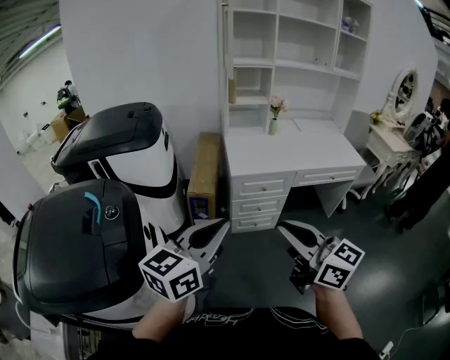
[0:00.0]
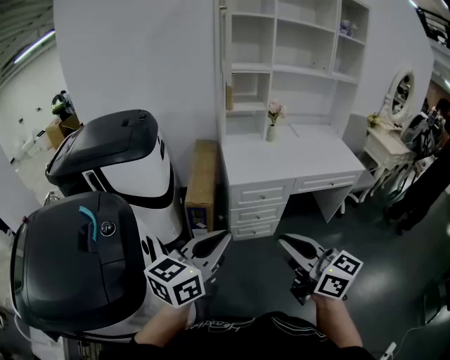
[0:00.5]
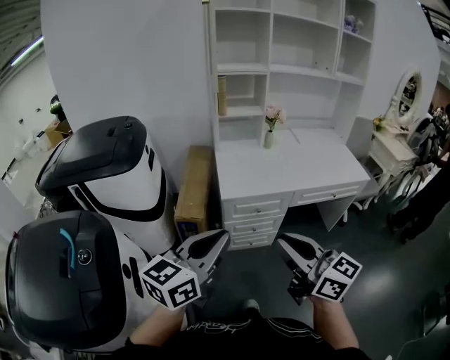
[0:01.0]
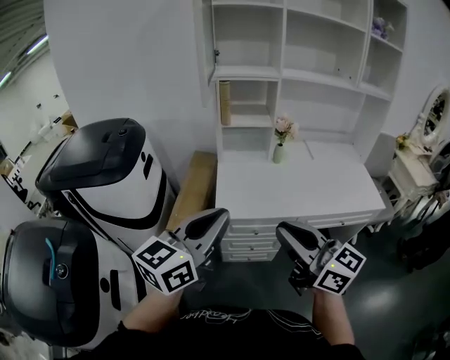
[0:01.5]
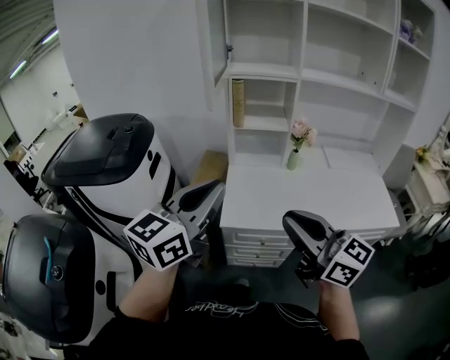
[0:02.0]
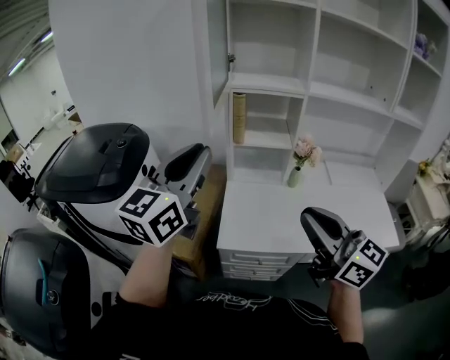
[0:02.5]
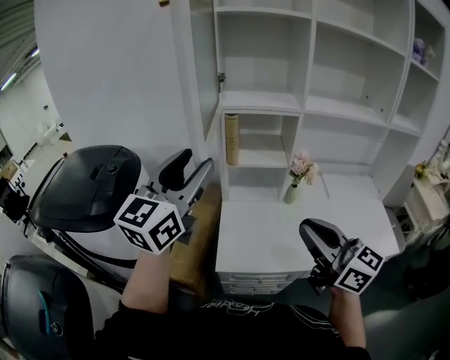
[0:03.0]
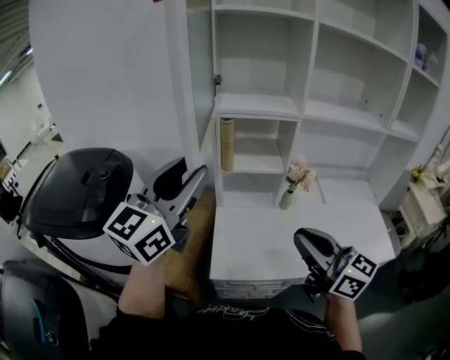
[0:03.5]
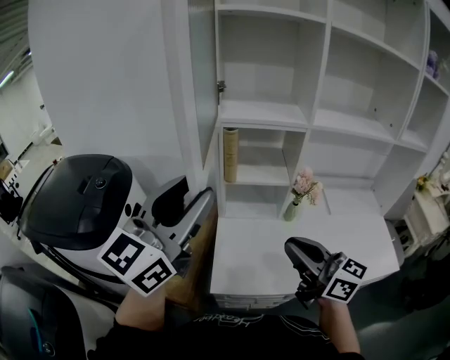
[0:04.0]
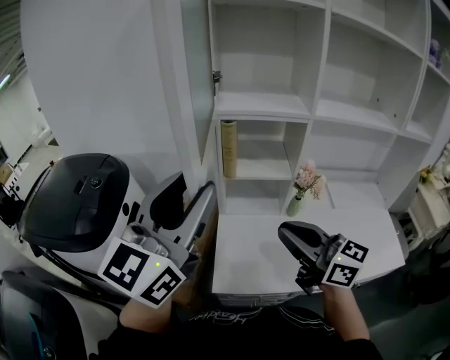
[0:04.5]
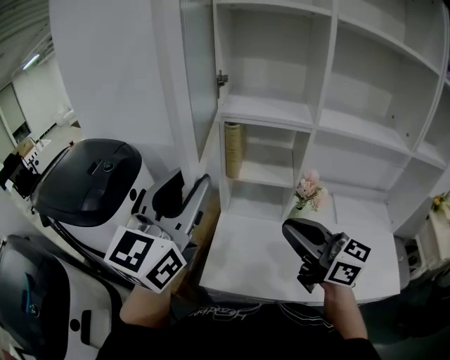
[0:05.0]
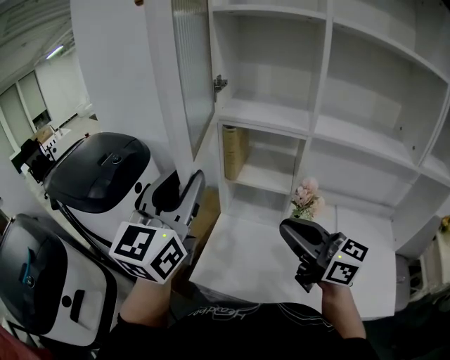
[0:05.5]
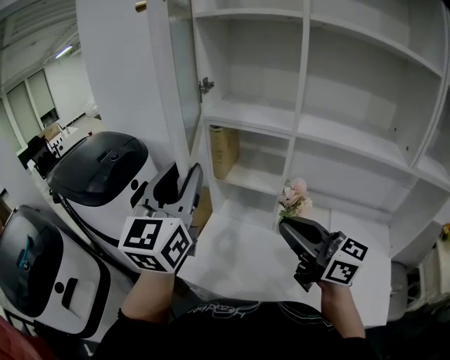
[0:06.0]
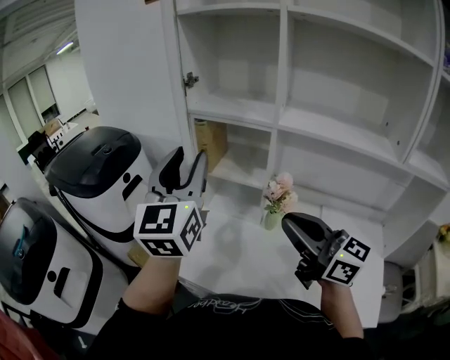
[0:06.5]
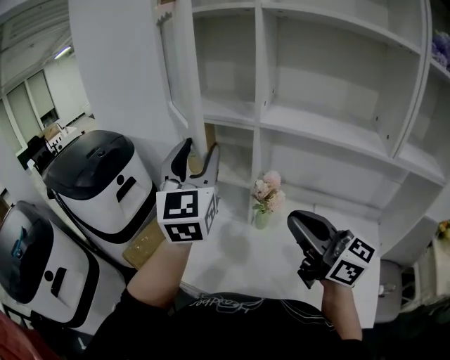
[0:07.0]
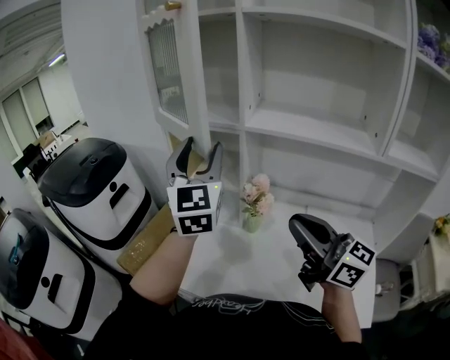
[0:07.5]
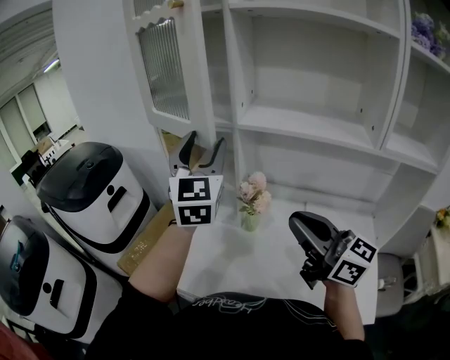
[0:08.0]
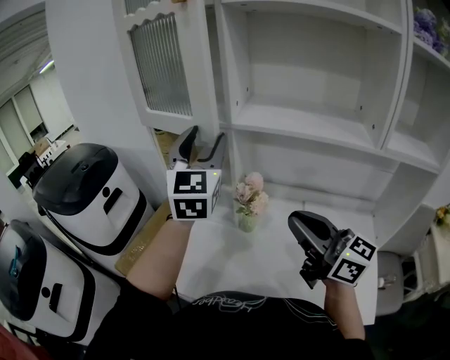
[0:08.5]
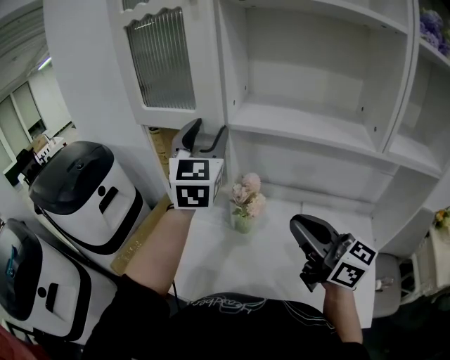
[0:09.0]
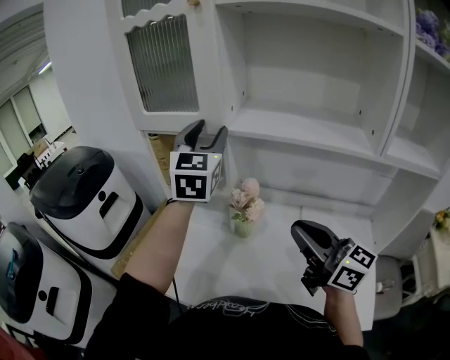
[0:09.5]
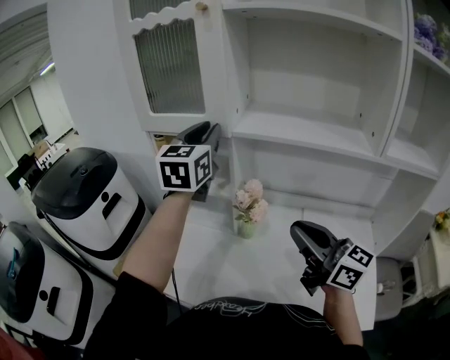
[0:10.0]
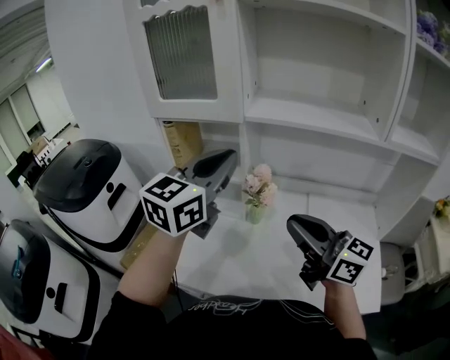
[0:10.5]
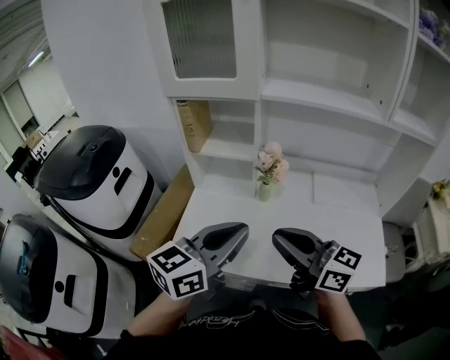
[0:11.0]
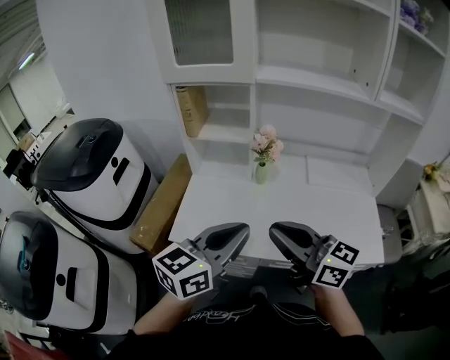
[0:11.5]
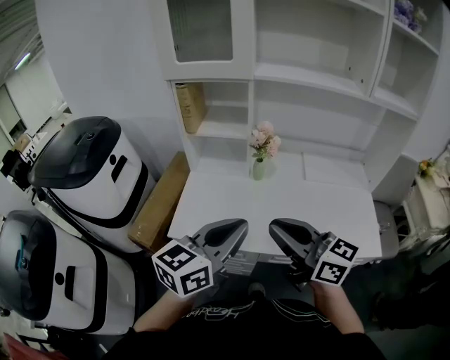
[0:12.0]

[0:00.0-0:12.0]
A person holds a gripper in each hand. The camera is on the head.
0:00.0 to 0:02.0: The pair of grippers is taken forward, approximately 40 cm.
0:02.0 to 0:04.0: The right gripper heads forward, covering roughly 25 cm; the left gripper shifts about 25 cm forward and upward, and opens up.
0:04.0 to 0:06.0: The right gripper ends up some 15 cm from where it was, and swivels about 20 degrees, while the left gripper changes place by some 10 cm, and rotates roughly 40 degrees.
0:06.0 to 0:08.0: The right gripper heads to the right and backward, covering approximately 20 cm; the left gripper heads to the right, covering roughly 20 cm, and opens its fingers.
0:08.0 to 0:10.0: The left gripper moves forward, about 5 cm, and closes its fingers.
0:10.0 to 0:12.0: The right gripper goes approximately 25 cm backward and to the left, while the left gripper is displaced backward and downward by about 40 cm, and turns by approximately 40 degrees.

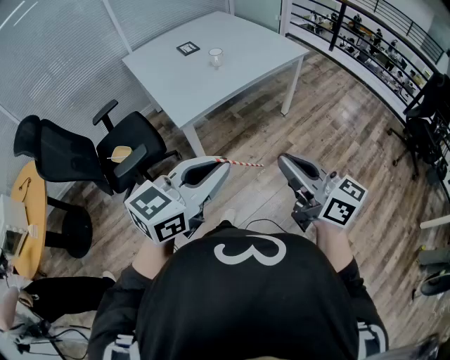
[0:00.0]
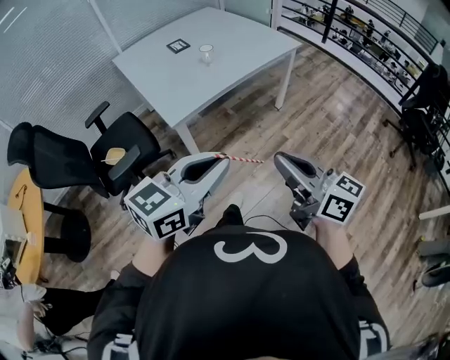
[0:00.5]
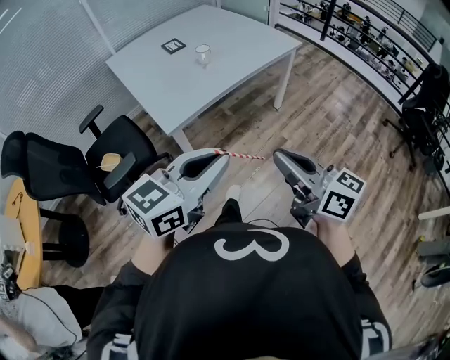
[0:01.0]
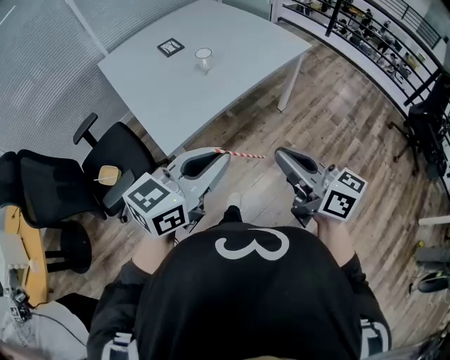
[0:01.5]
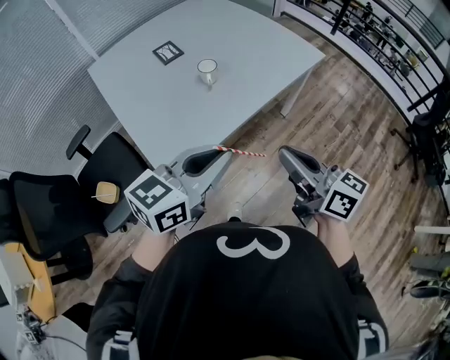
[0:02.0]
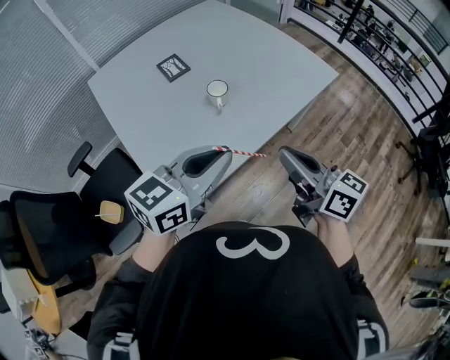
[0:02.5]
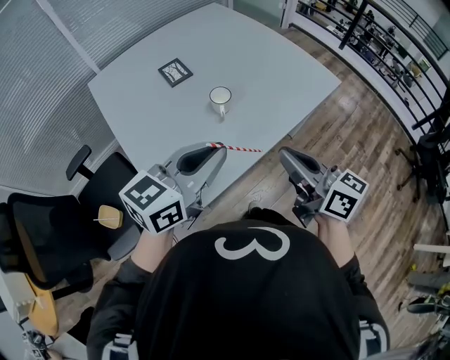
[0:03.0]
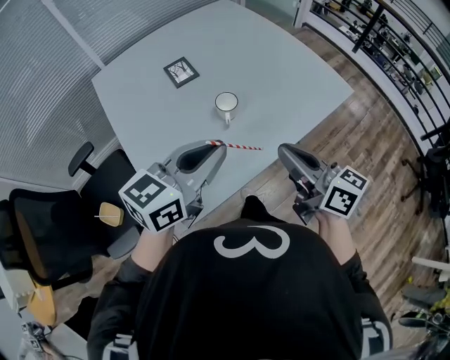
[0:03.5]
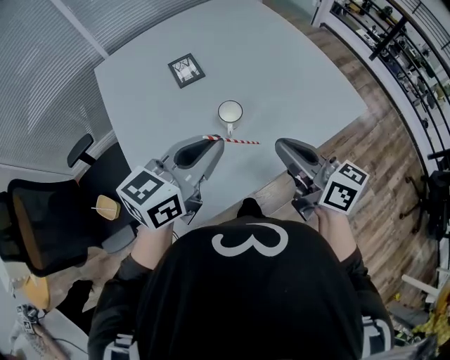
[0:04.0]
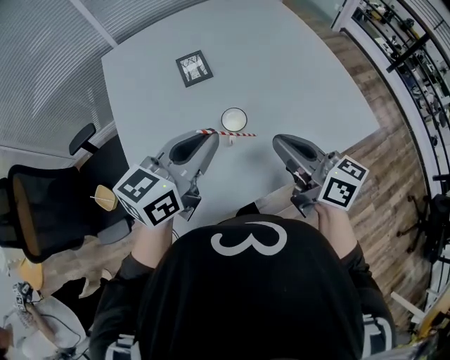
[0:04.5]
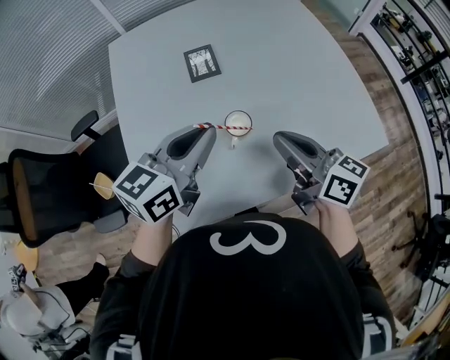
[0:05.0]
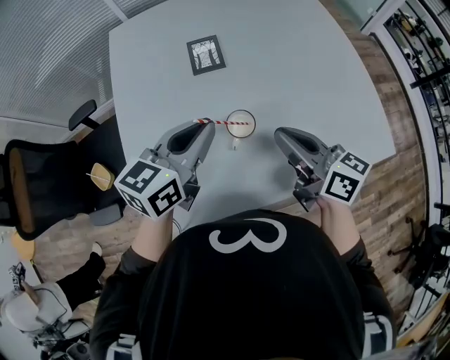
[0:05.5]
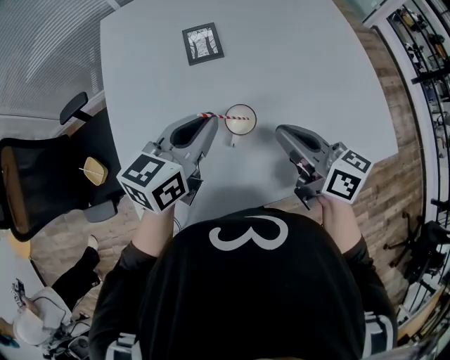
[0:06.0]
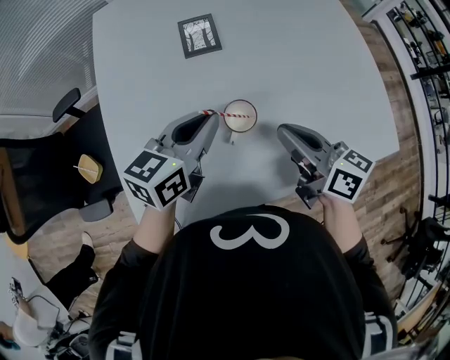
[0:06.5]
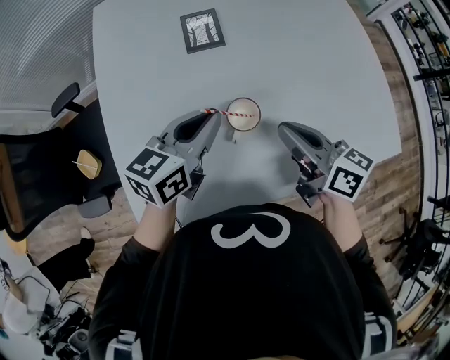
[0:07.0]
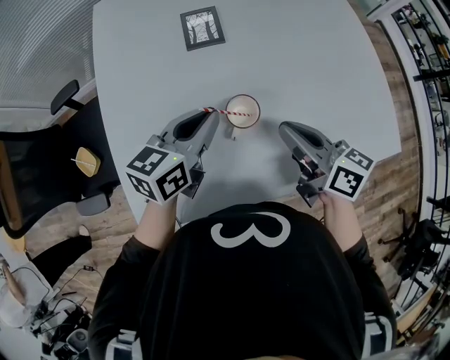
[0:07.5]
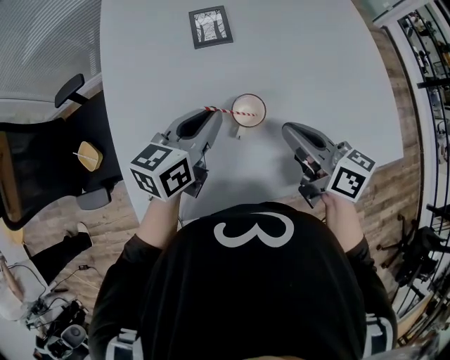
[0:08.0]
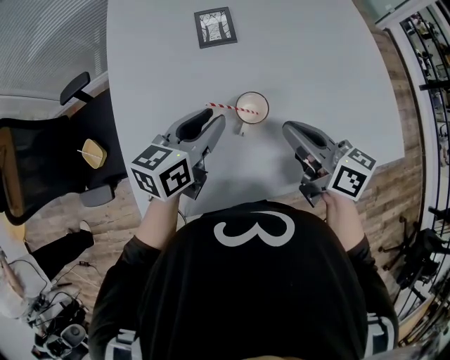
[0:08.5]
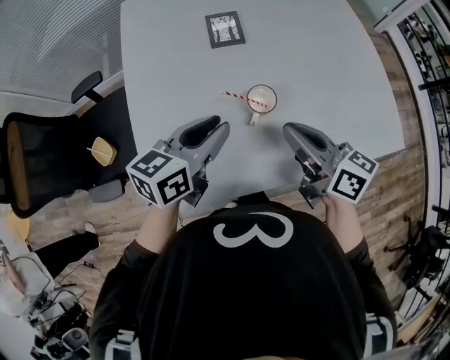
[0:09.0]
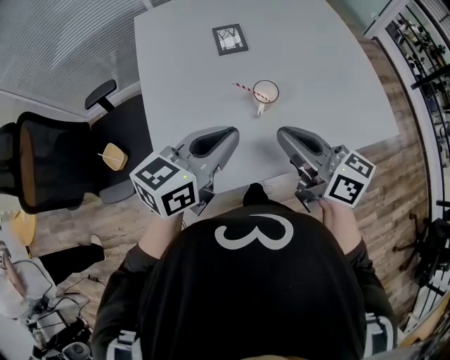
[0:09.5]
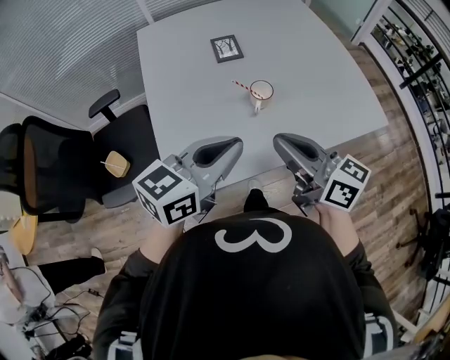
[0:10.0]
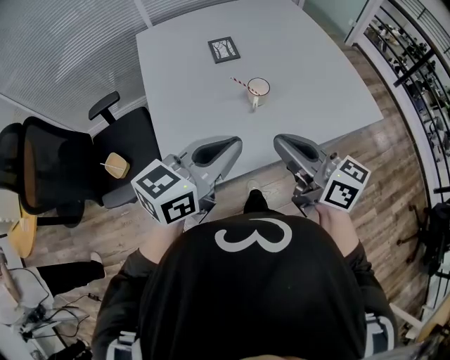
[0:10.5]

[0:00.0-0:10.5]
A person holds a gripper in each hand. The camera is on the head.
0:00.0 to 0:02.0: Both grippers move forward, some 35 cm.
0:02.0 to 0:04.0: The grippers both shift forward by roughly 30 cm.
0:04.0 to 0:06.5: Both grippers travel together forward and downward, approximately 20 cm. The left gripper swivels approximately 20 degrees.
0:06.5 to 0:08.5: The left gripper opens its fingers.
0:08.5 to 0:10.5: The right gripper shifts some 25 cm backward, upward and to the left; the left gripper moves backward and upward, about 30 cm, swivels some 30 degrees, and closes up.

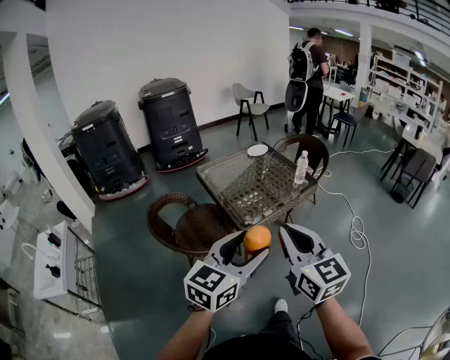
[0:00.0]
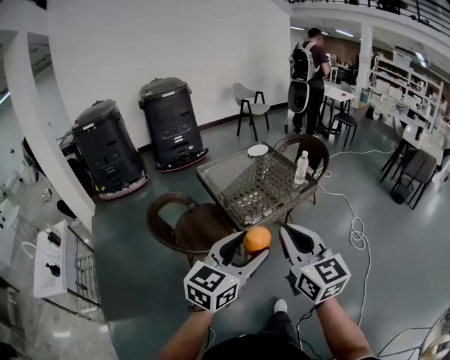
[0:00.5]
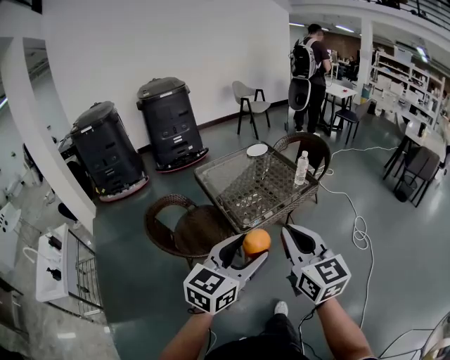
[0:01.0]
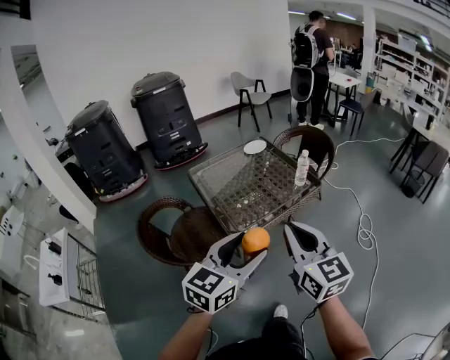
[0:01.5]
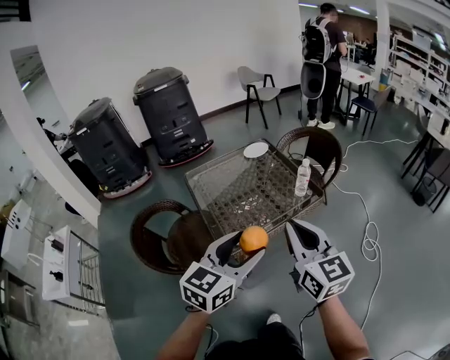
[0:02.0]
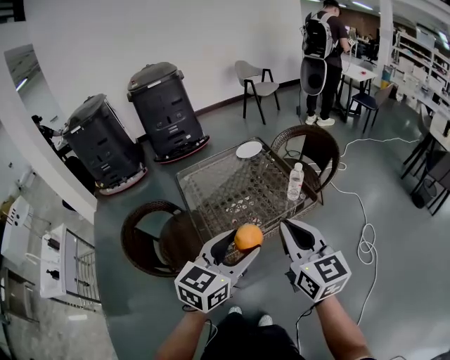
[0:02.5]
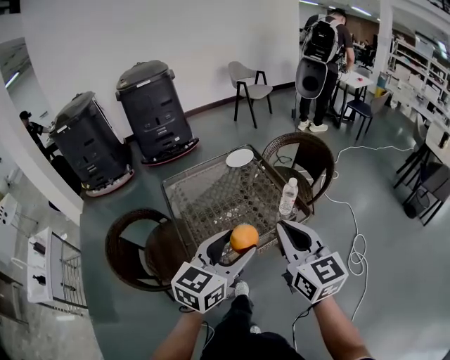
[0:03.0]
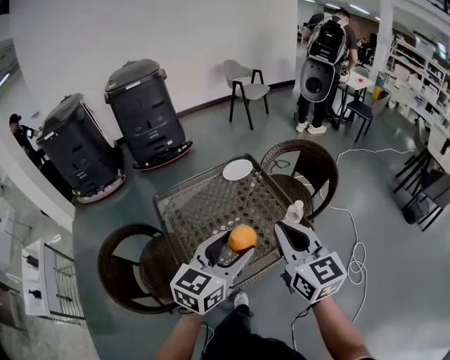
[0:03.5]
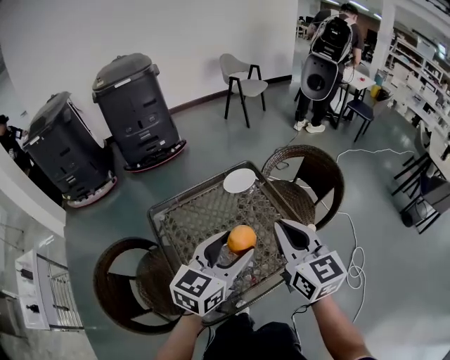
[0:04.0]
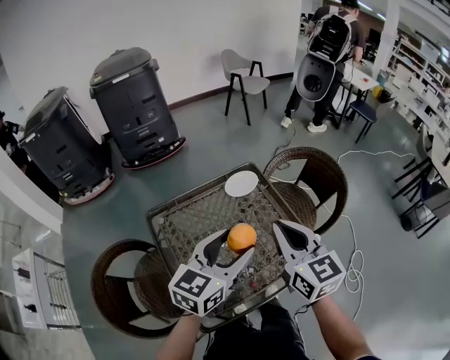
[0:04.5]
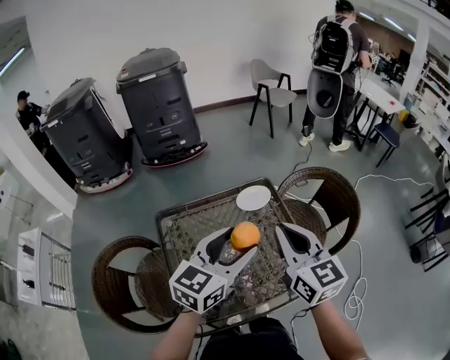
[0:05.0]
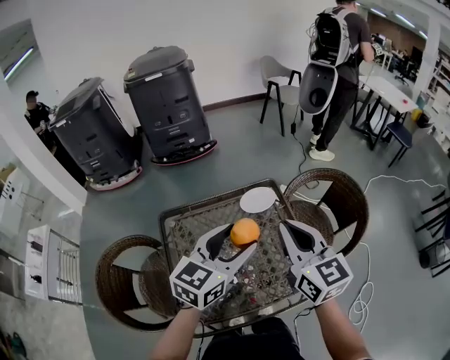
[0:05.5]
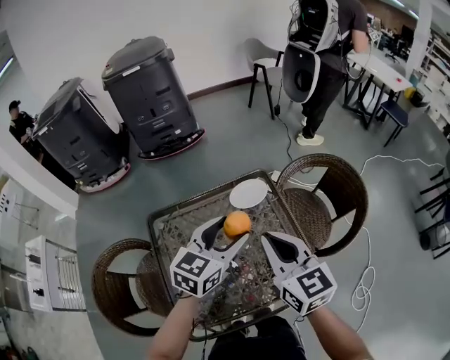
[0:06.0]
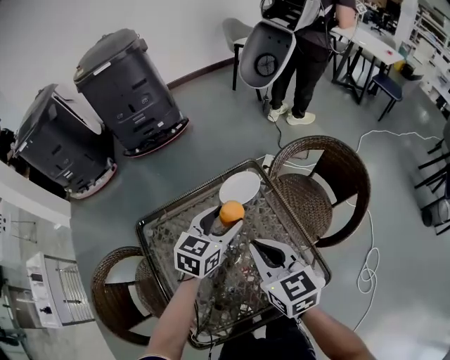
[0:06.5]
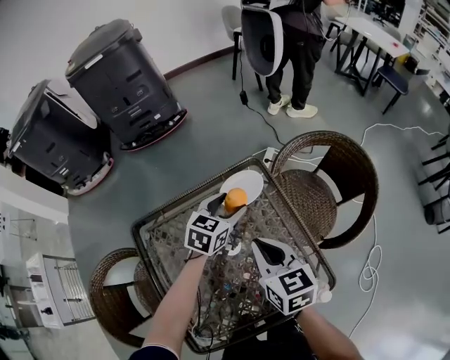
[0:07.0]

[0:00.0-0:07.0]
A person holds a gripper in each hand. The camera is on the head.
0:00.0 to 0:02.0: Both grippers travel together forward and to the right, approximately 25 cm.
0:02.0 to 0:03.5: The two grippers go some 25 cm forward.
0:03.5 to 0:05.0: The two grippers go about 20 cm forward.
0:05.0 to 0:07.0: The right gripper moves downward and forward, some 20 cm, and changes its angle by approximately 20 degrees. The left gripper is displaced downward and forward by approximately 35 cm, and rotates some 20 degrees.
